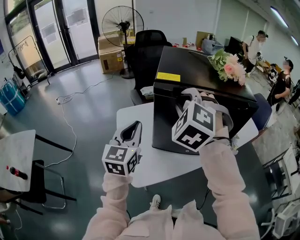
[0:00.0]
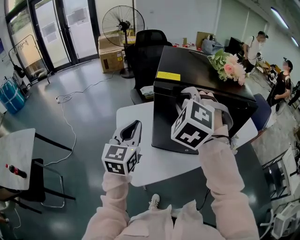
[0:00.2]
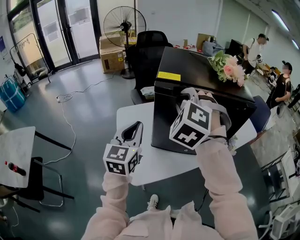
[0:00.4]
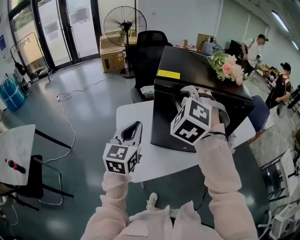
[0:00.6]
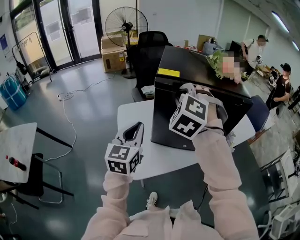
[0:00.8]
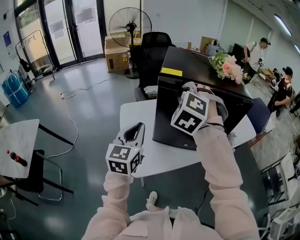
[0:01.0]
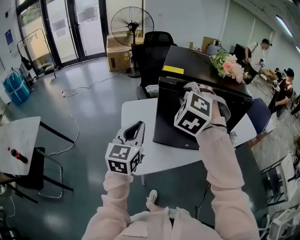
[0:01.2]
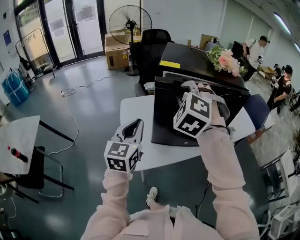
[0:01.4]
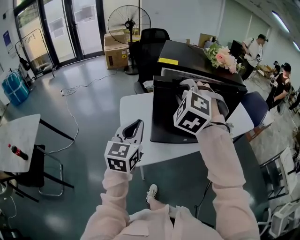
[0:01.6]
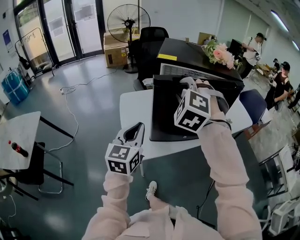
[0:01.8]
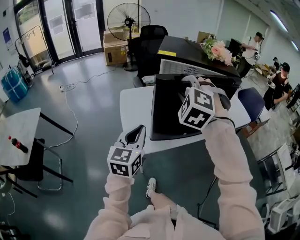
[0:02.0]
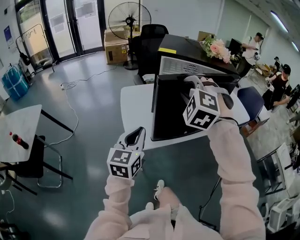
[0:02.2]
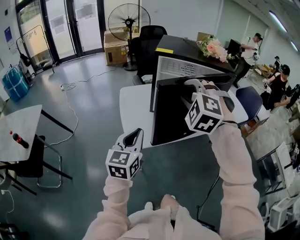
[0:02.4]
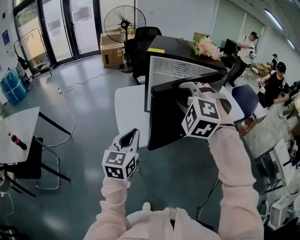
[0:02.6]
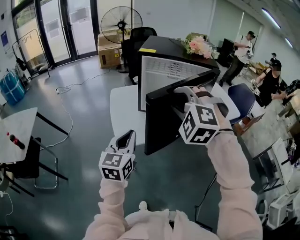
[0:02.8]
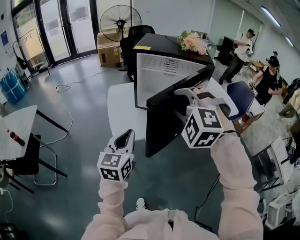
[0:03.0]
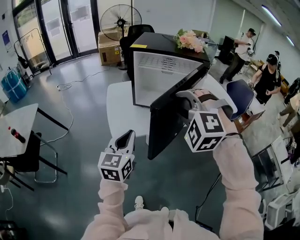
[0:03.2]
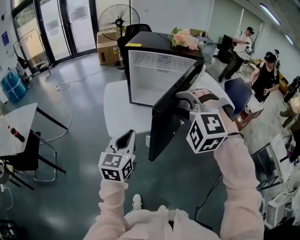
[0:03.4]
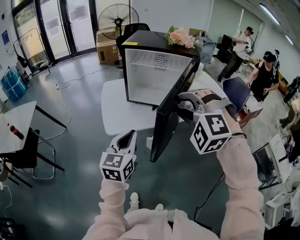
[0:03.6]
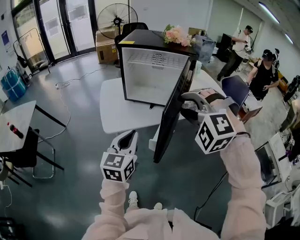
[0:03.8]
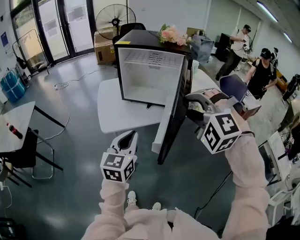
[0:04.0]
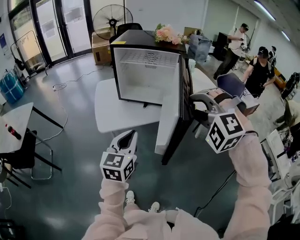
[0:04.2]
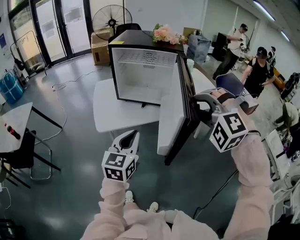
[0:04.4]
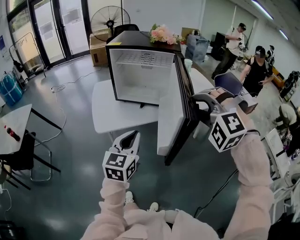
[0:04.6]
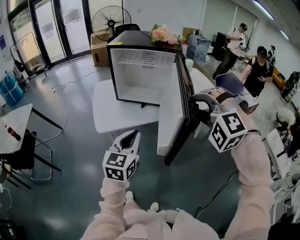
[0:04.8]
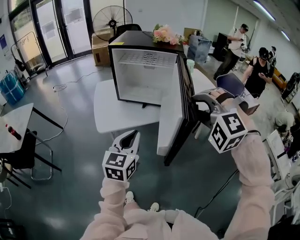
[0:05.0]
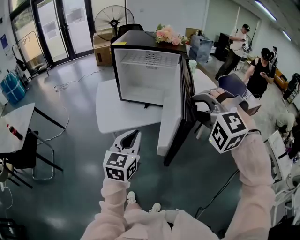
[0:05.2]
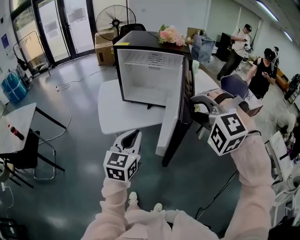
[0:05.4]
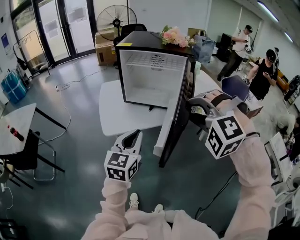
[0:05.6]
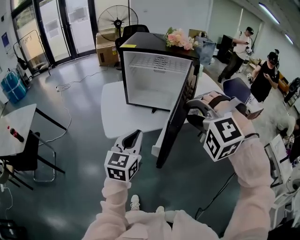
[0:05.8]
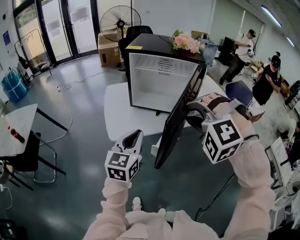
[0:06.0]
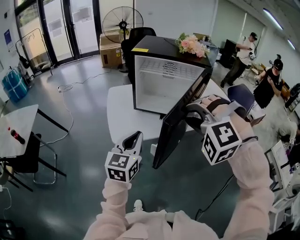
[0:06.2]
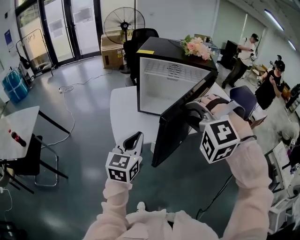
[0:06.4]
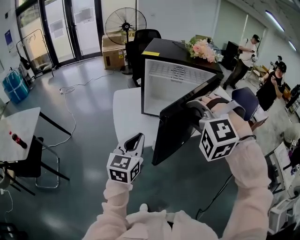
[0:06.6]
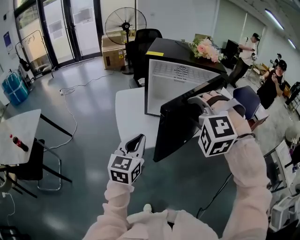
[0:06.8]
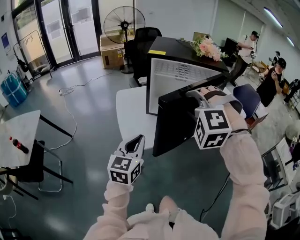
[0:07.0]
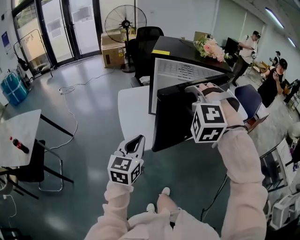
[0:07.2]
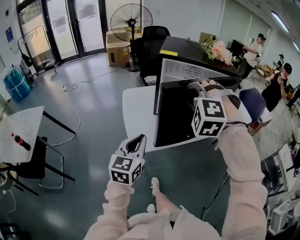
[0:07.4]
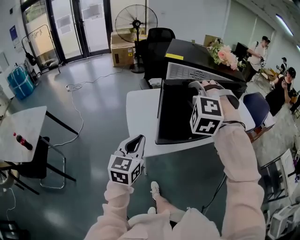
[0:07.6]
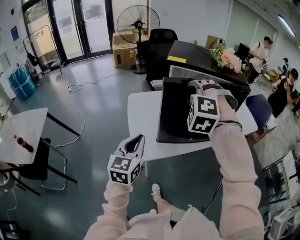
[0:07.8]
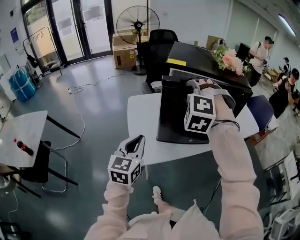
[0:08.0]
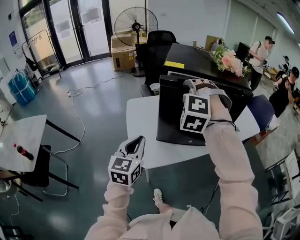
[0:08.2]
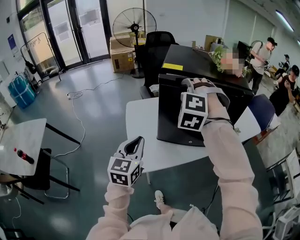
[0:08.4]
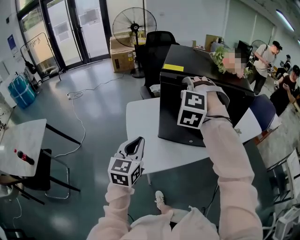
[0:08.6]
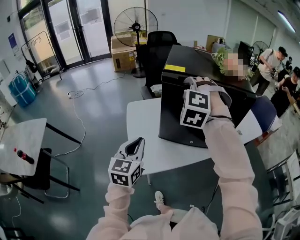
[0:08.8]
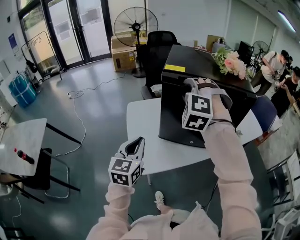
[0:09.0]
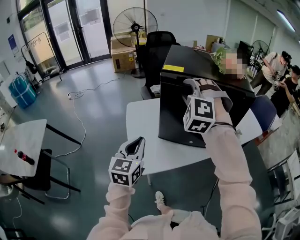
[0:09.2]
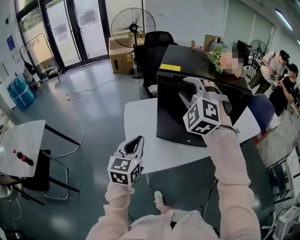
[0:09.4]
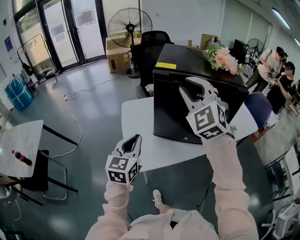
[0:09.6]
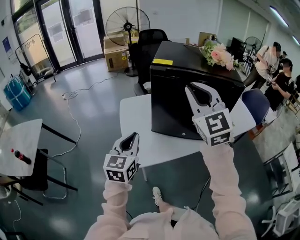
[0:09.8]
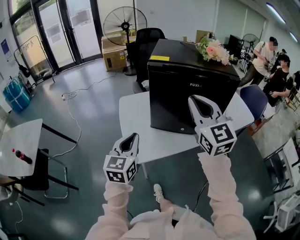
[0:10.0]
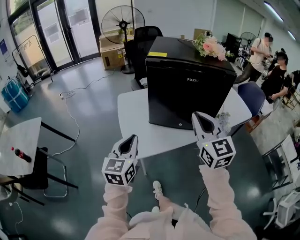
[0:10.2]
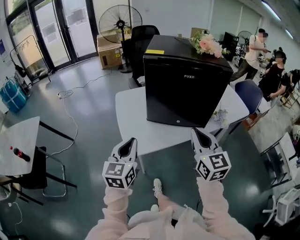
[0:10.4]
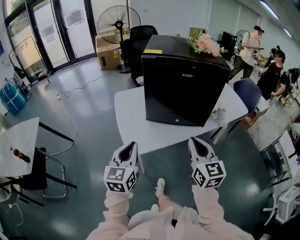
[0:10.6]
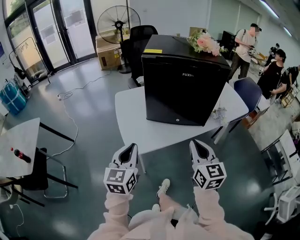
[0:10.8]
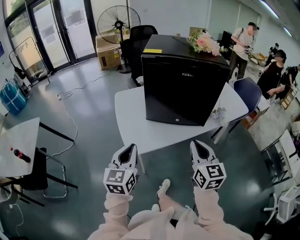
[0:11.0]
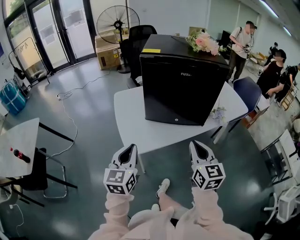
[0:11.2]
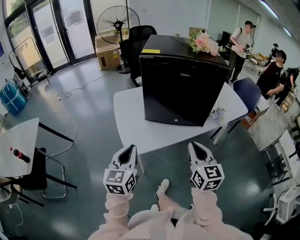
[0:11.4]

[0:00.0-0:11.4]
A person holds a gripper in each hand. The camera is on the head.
0.0 to 1.4 s: The right gripper shifts about 5 cm backward, while the left gripper goes some 10 cm backward.
1.4 to 2.8 s: The two grippers go some 20 cm backward and to the right.
2.8 to 4.2 s: Both grippers travel together to the right and backward, roughly 20 cm.
4.2 to 5.6 s: The grippers stay close to where they were, moving slightly.
5.6 to 7.2 s: Both grippers travel together to the left and forward, roughly 25 cm.
7.2 to 8.6 s: The right gripper moves forward, about 20 cm. The left gripper travels forward and to the left by roughly 15 cm.
8.6 to 10.0 s: The right gripper travels backward and to the right by approximately 15 cm, rotates around the line of its fingers by roughly 60 degrees, clockwise from behind, and closes. The left gripper shifts by some 5 cm.
10.0 to 11.4 s: The left gripper heads backward, covering approximately 10 cm, while the right gripper is displaced downward and backward by roughly 20 cm, and swivels roughly 30 degrees.

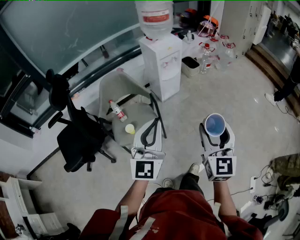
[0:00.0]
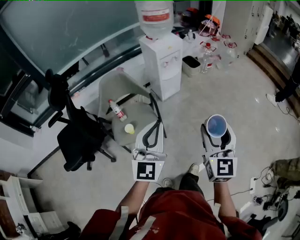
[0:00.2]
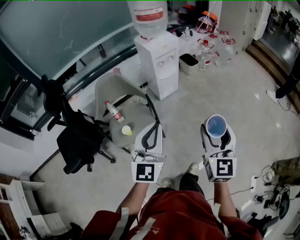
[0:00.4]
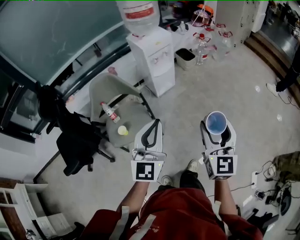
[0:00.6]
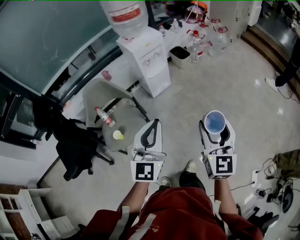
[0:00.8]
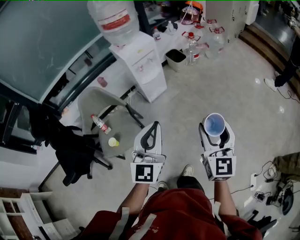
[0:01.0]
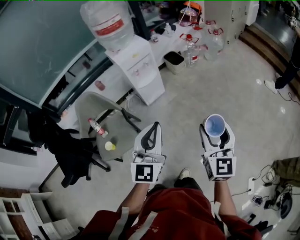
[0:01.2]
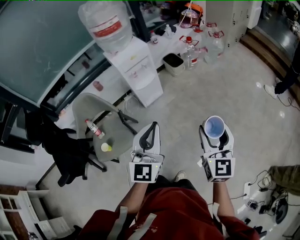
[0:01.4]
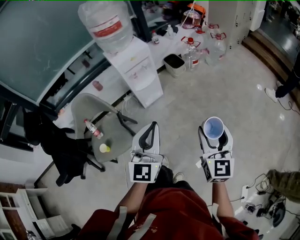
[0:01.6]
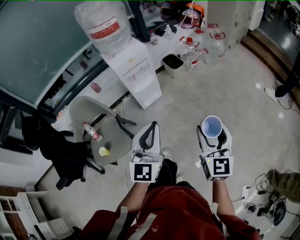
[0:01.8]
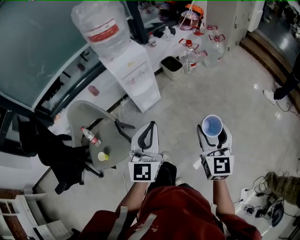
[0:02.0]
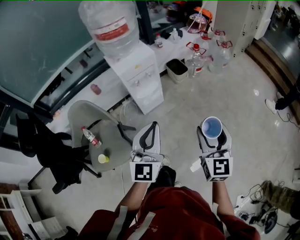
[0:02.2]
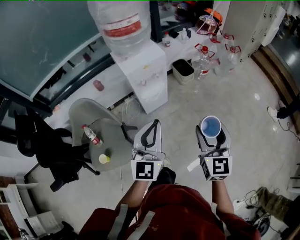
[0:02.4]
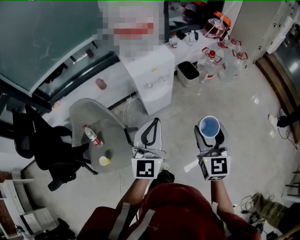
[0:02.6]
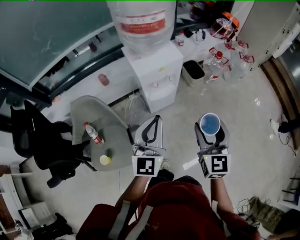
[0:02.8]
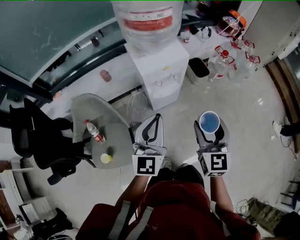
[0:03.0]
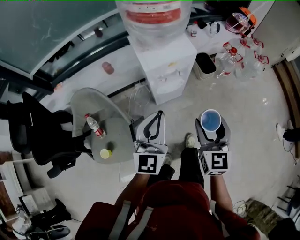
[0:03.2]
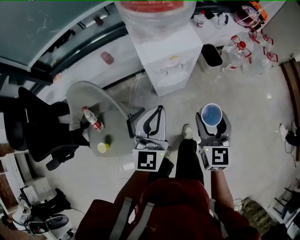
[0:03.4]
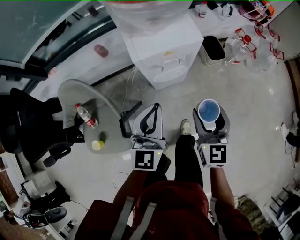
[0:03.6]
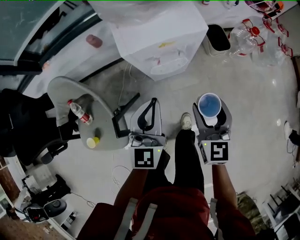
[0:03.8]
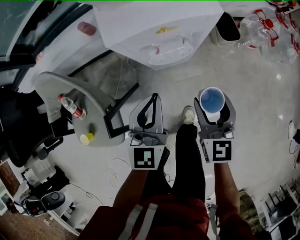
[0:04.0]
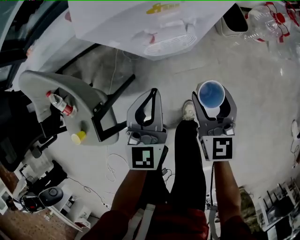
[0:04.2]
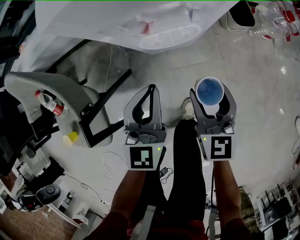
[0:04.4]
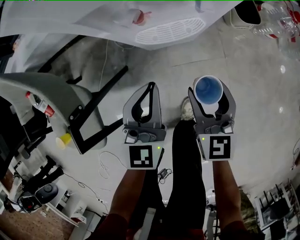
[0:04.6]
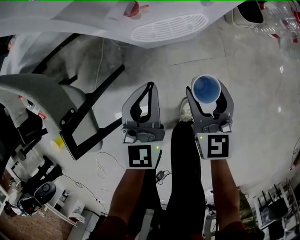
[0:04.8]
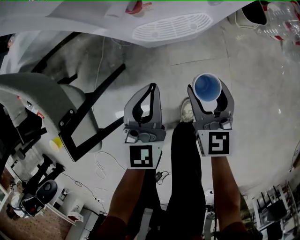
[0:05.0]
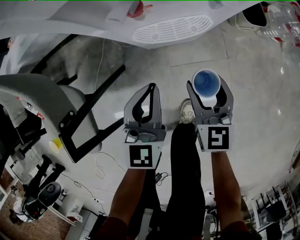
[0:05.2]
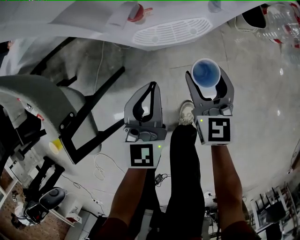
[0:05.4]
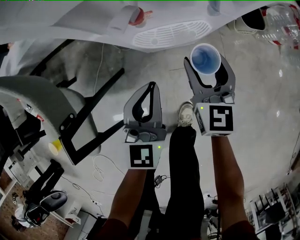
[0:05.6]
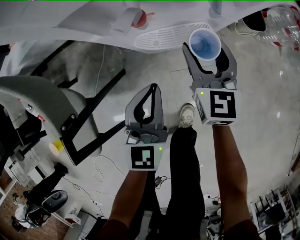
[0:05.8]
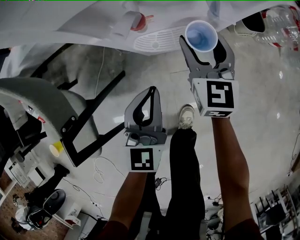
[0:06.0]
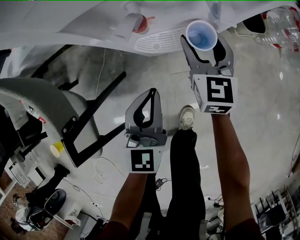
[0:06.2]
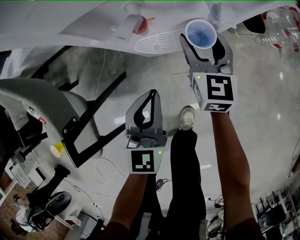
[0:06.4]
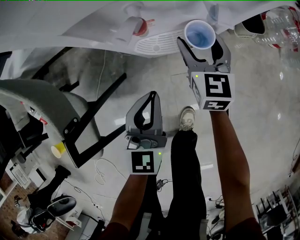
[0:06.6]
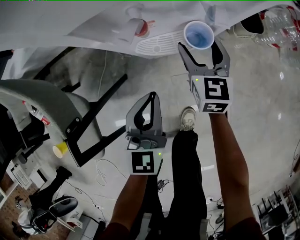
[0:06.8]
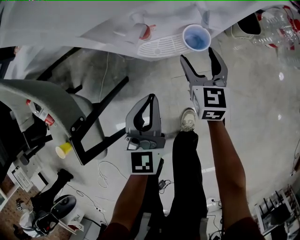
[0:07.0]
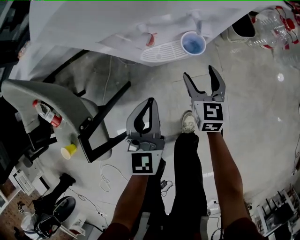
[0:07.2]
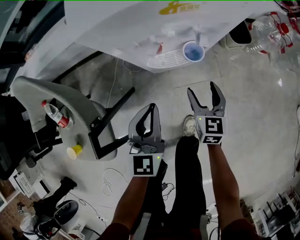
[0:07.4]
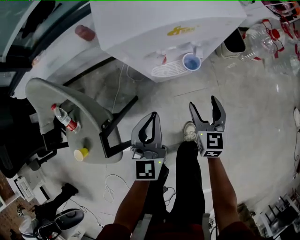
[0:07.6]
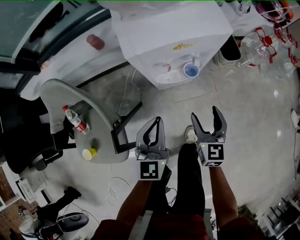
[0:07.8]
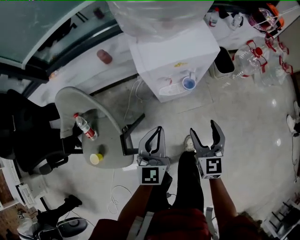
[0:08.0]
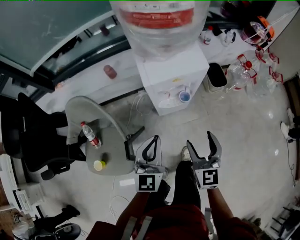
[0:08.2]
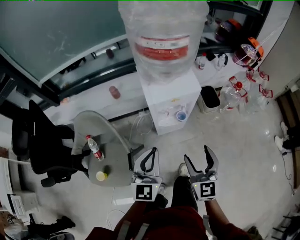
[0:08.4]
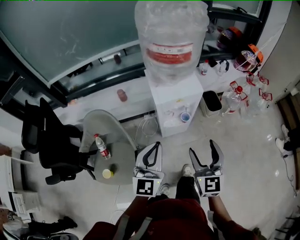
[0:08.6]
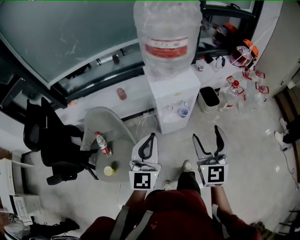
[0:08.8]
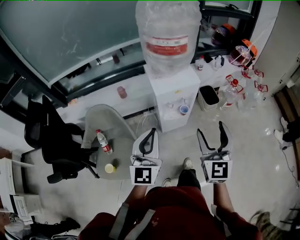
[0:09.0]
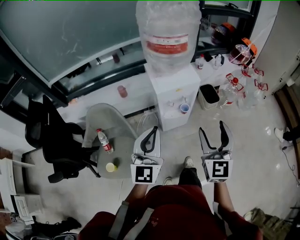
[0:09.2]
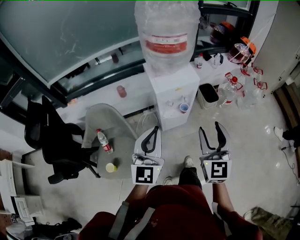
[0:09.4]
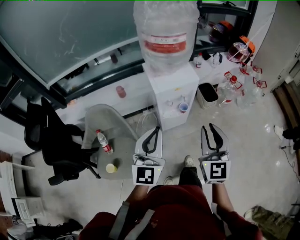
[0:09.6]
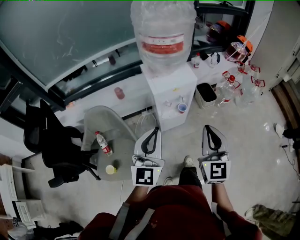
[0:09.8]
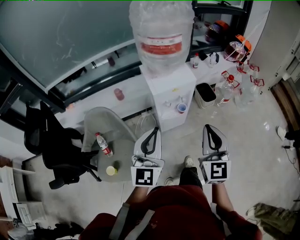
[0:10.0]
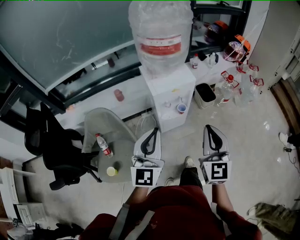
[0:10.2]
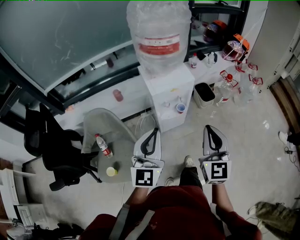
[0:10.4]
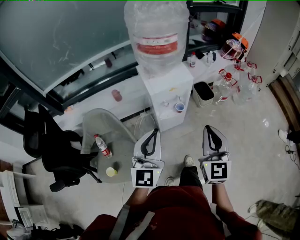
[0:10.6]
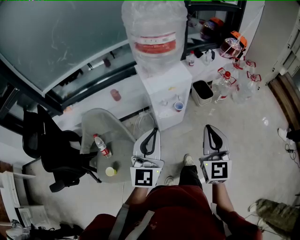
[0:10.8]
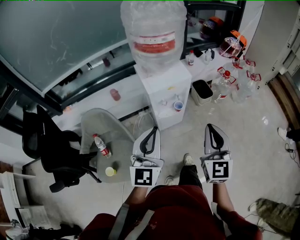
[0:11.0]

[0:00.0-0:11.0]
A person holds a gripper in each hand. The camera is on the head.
0.0 to 1.6 s: Both grippers travel together to the right and forward, about 35 cm.
1.6 to 3.2 s: Both grippers move forward and to the left, some 35 cm.
3.2 to 4.8 s: The two grippers go about 40 cm downward.
4.8 to 6.2 s: The right gripper goes roughly 15 cm forward.
6.2 to 7.8 s: The left gripper moves upward, about 20 cm; the right gripper travels backward and upward by about 25 cm.
7.8 to 9.4 s: The grippers both shift upward by some 35 cm. The right gripper swivels approximately 30 degrees, while the left gripper turns by roughly 20 degrees.
9.4 to 11.0 s: The right gripper closes.

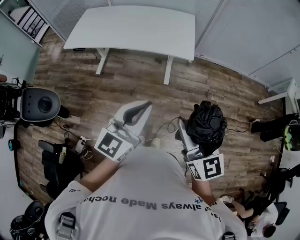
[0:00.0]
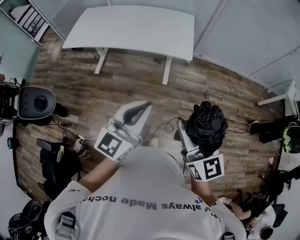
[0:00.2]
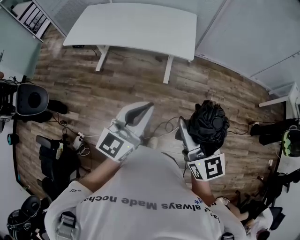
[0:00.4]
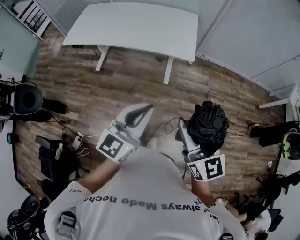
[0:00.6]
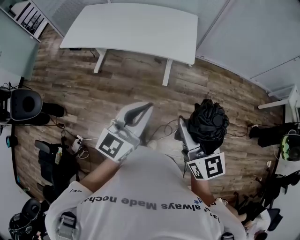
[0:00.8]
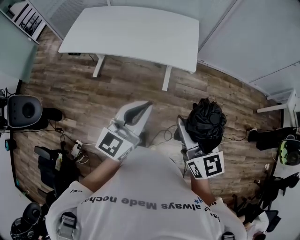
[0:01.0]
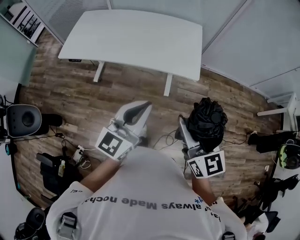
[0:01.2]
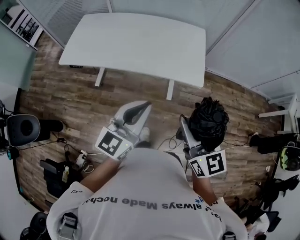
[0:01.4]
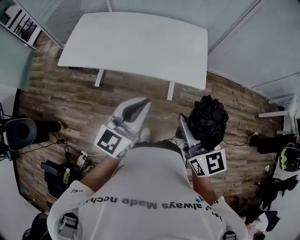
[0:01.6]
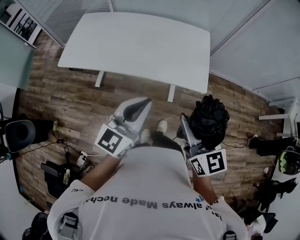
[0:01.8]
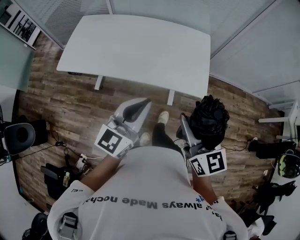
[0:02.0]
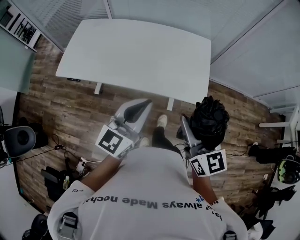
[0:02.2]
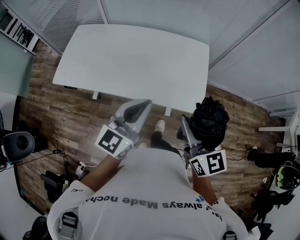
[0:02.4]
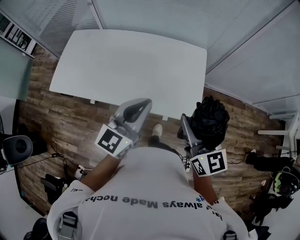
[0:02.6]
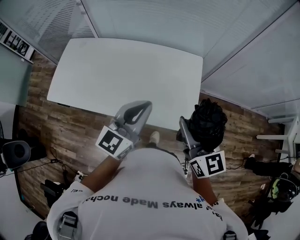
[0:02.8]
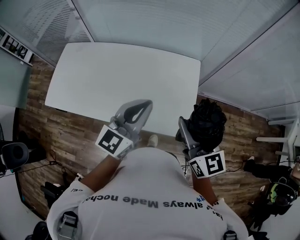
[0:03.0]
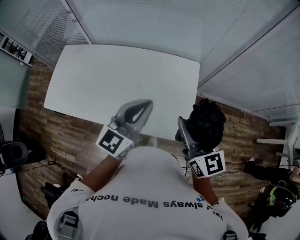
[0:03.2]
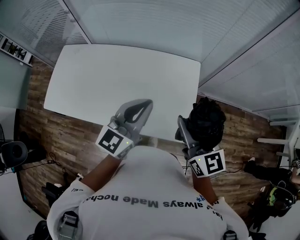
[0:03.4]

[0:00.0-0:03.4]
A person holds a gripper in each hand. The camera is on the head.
0.0 to 1.6 s: The grippers both shift forward and to the left by some 35 cm.
1.6 to 3.4 s: The two grippers travel together, forward, some 50 cm.
